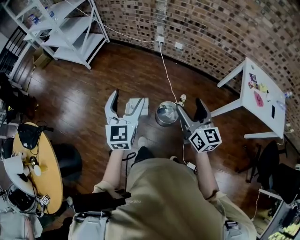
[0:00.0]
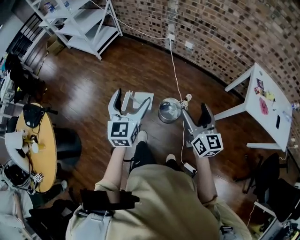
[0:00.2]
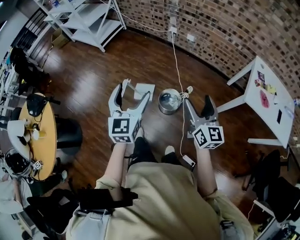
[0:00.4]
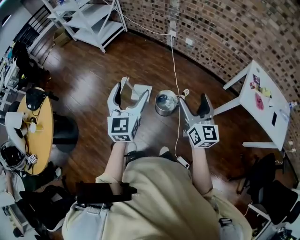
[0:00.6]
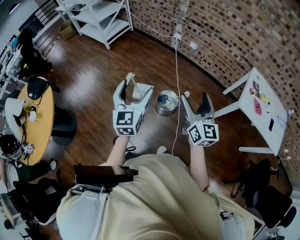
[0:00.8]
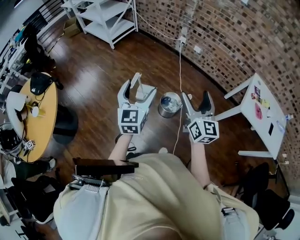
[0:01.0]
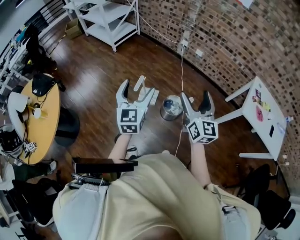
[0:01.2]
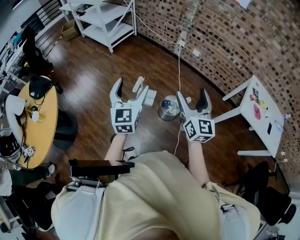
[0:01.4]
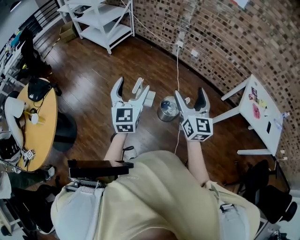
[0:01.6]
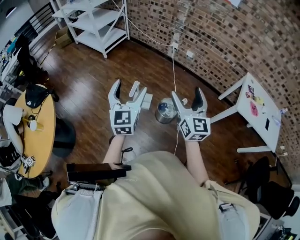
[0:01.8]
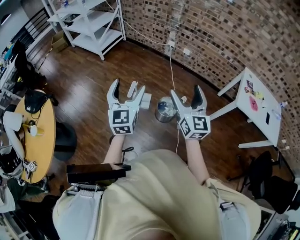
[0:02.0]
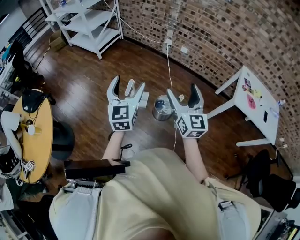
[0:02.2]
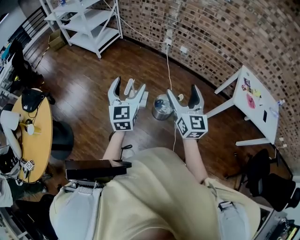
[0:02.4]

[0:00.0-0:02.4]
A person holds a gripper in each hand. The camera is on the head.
0:00.0 to 0:01.2: The right gripper goes roughly 15 cm backward and upward, while the left gripper moves backward, roughly 15 cm.
0:01.2 to 0:02.4: The grippers make only small movements.

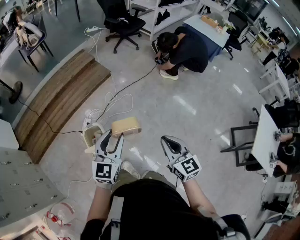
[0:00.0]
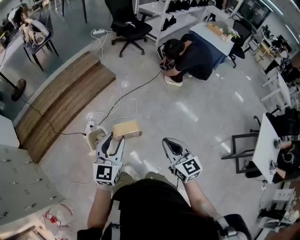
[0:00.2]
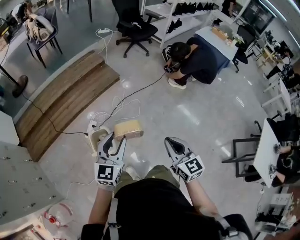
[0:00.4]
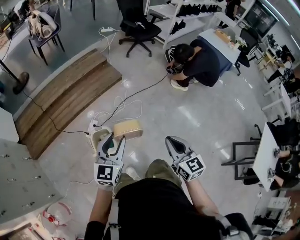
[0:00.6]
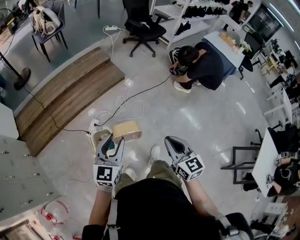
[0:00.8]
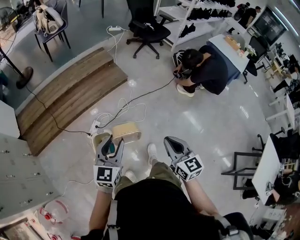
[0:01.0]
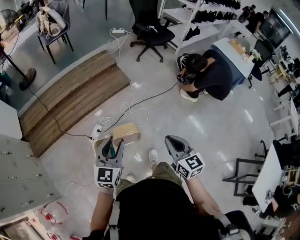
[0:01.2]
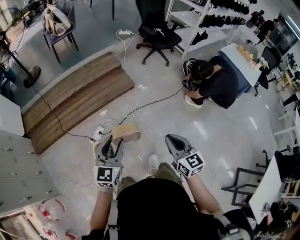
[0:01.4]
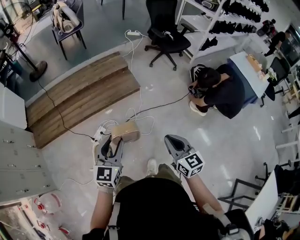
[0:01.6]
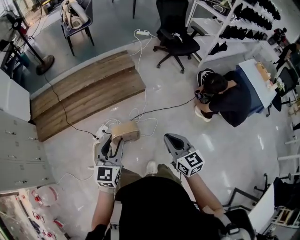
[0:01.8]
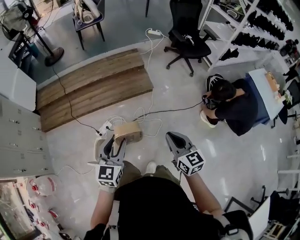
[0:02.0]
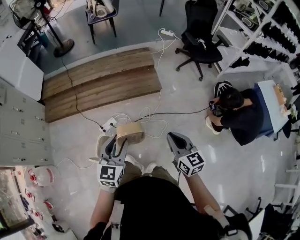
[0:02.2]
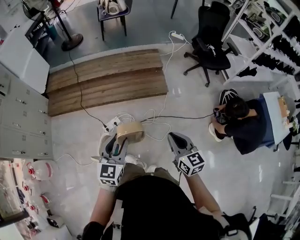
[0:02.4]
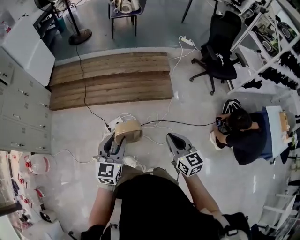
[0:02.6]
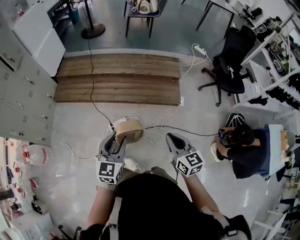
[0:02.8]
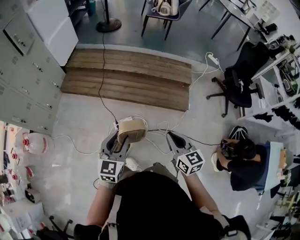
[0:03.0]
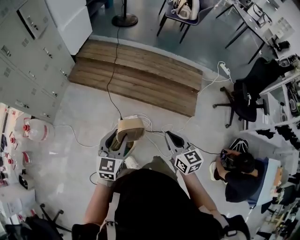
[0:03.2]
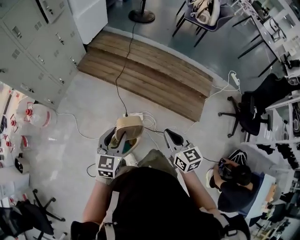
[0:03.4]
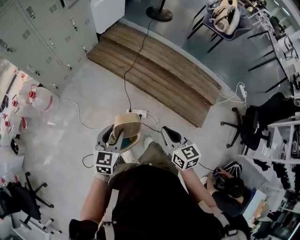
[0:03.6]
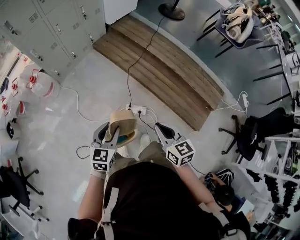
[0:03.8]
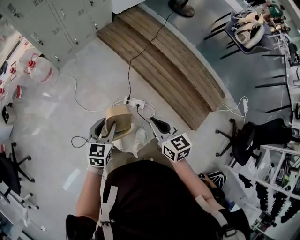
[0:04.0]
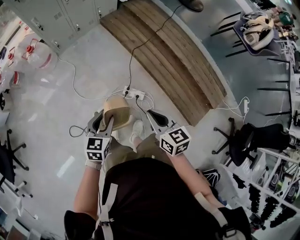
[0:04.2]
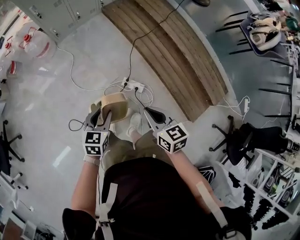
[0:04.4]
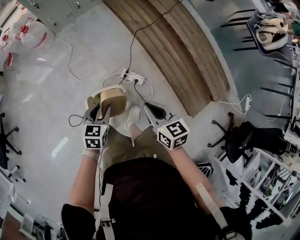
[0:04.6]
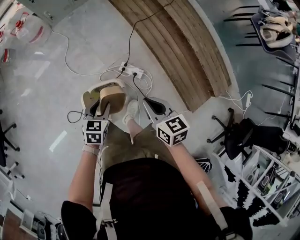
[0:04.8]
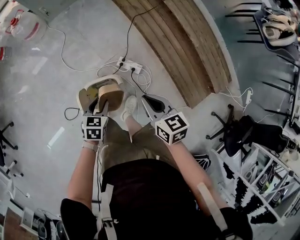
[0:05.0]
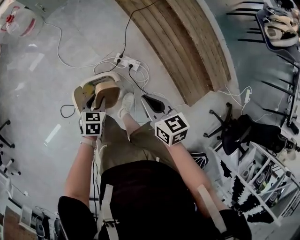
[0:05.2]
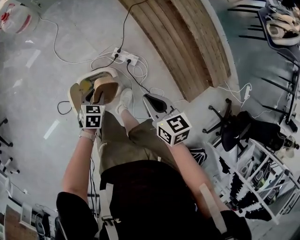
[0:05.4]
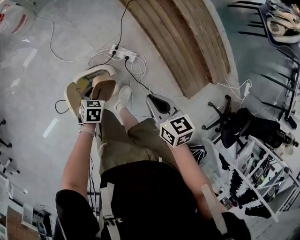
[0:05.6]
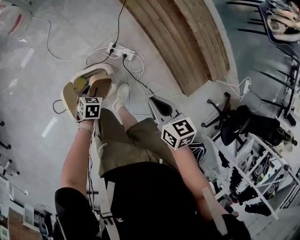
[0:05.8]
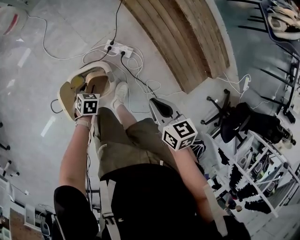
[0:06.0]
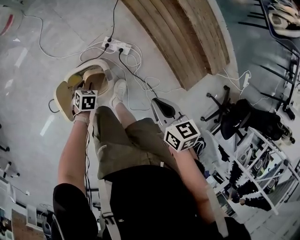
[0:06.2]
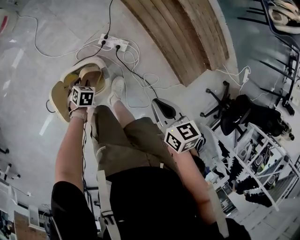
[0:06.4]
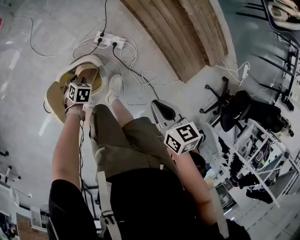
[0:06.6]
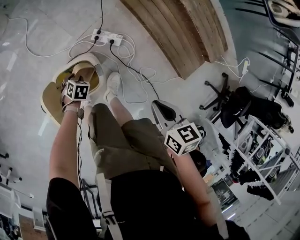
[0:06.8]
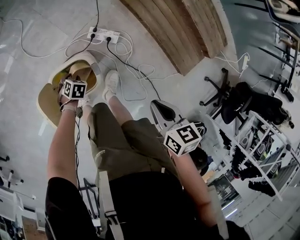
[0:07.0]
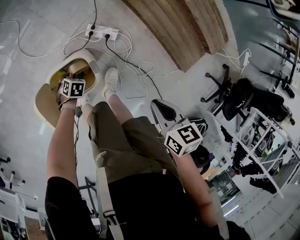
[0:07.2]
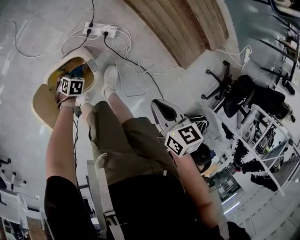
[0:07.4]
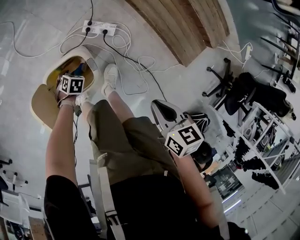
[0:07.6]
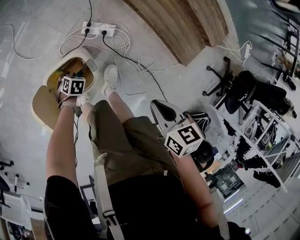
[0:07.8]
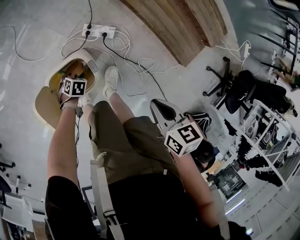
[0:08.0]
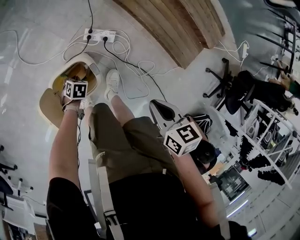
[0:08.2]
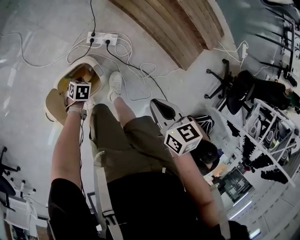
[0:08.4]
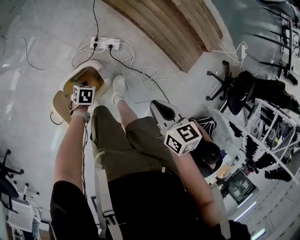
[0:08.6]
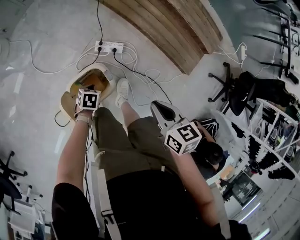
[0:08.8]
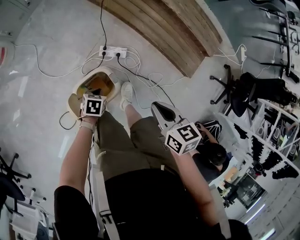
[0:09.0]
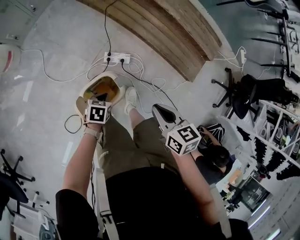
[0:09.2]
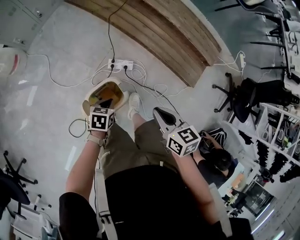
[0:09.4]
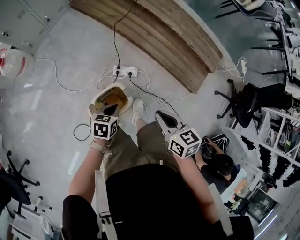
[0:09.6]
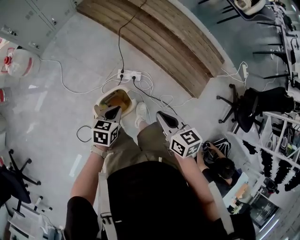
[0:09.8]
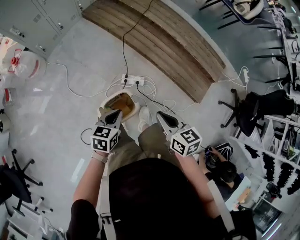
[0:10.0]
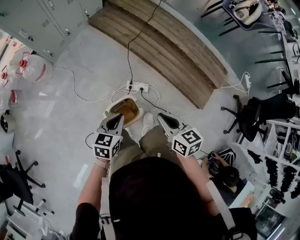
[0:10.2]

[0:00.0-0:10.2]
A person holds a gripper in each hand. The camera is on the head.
0:00.0 to 0:01.4: Both grippers move forward, roughly 25 cm.
0:01.4 to 0:03.0: The left gripper ends up about 20 cm from where it was, and swivels some 40 degrees; the right gripper changes place by approximately 35 cm, and rotates roughly 40 degrees.
0:03.0 to 0:04.4: The right gripper ends up some 30 cm from where it was, and turns by about 50 degrees, while the left gripper travels downward by approximately 20 cm, and rotates some 50 degrees.
0:04.4 to 0:05.8: The right gripper heads downward and to the right, covering approximately 15 cm; the left gripper travels downward by about 30 cm, and tilts its fingers some 30 degrees downward.
0:05.8 to 0:07.2: The left gripper shifts approximately 20 cm downward, and changes its angle by about 20 degrees, while the right gripper ends up approximately 10 cm from where it was.
0:07.2 to 0:08.8: The left gripper shifts approximately 10 cm upward, and closes; the right gripper ends up roughly 10 cm from where it was.
0:08.8 to 0:10.2: The left gripper moves upward, about 40 cm, and tips its fingers upward by about 40 degrees, while the right gripper shifts roughly 20 cm upward and to the left.

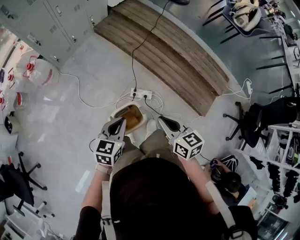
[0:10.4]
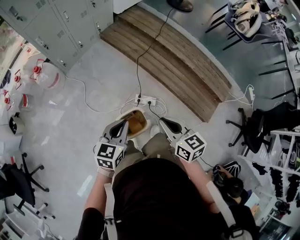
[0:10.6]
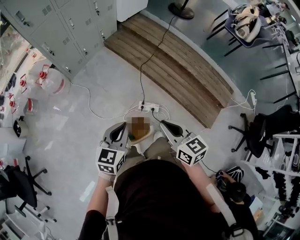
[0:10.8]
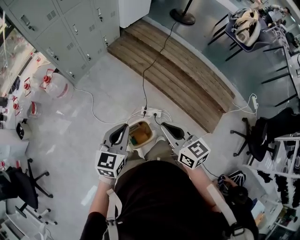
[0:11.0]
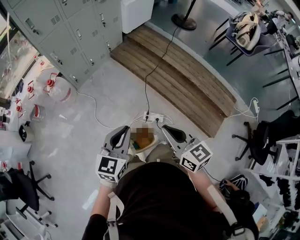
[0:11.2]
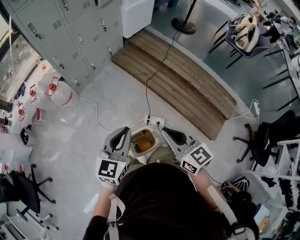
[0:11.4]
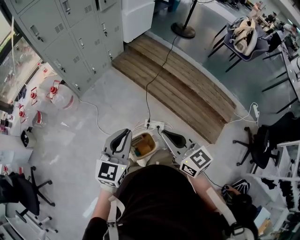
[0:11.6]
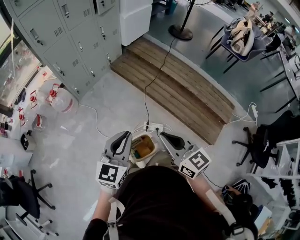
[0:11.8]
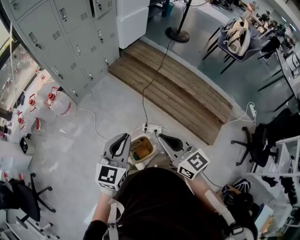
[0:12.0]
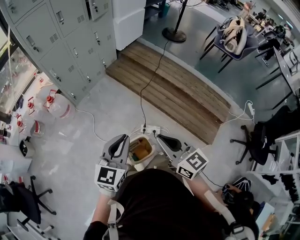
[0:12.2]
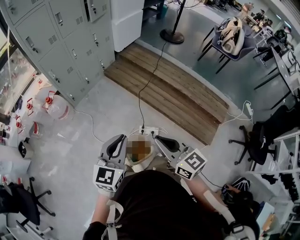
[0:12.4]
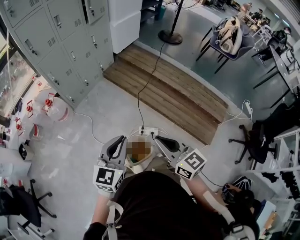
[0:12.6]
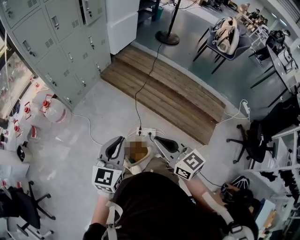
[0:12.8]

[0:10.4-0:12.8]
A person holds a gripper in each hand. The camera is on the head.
0:10.4 to 0:11.6: Both grippers move upward, approximately 20 cm. The right gripper changes its angle by some 20 degrees. Meanwhile the left gripper changes its angle by some 20 degrees.
0:11.6 to 0:12.8: There are only small adjustments of the grippers.

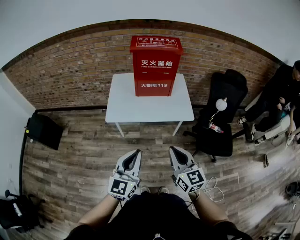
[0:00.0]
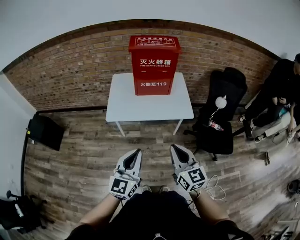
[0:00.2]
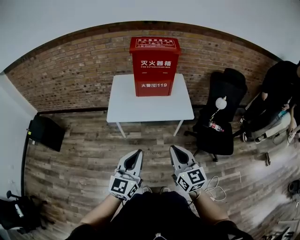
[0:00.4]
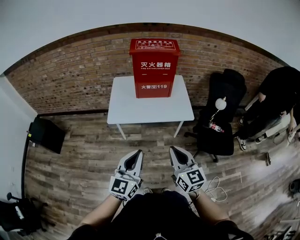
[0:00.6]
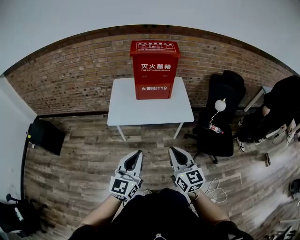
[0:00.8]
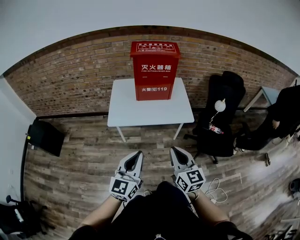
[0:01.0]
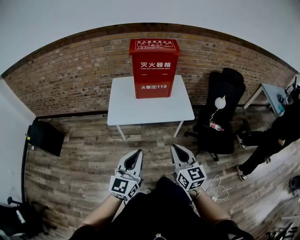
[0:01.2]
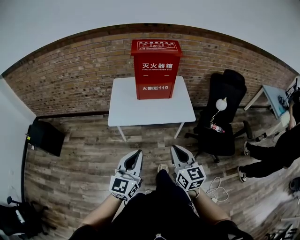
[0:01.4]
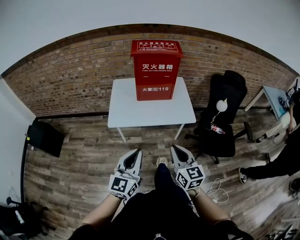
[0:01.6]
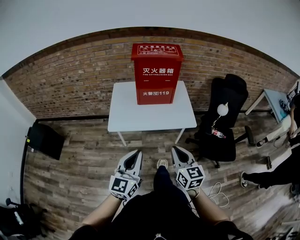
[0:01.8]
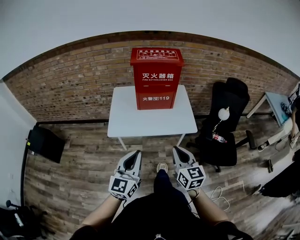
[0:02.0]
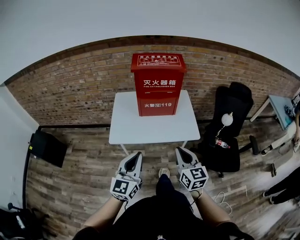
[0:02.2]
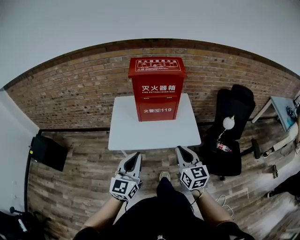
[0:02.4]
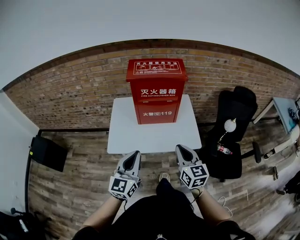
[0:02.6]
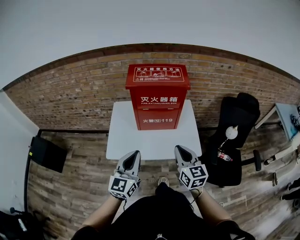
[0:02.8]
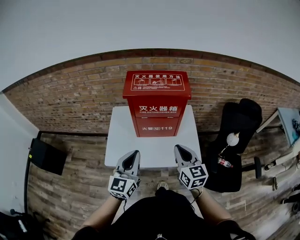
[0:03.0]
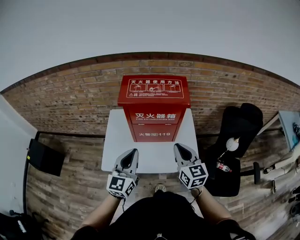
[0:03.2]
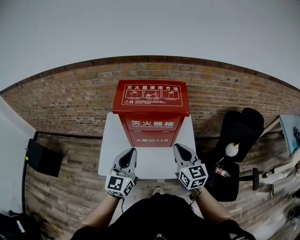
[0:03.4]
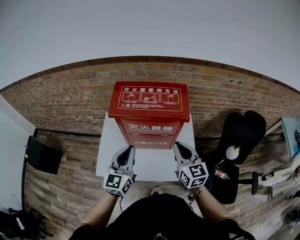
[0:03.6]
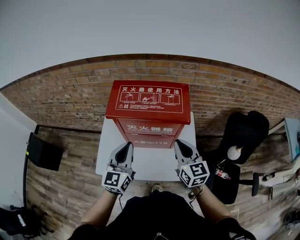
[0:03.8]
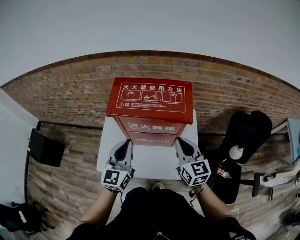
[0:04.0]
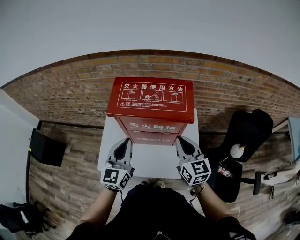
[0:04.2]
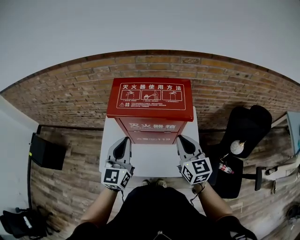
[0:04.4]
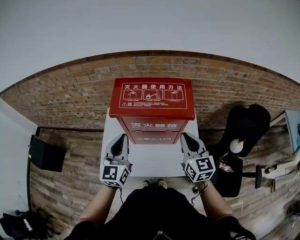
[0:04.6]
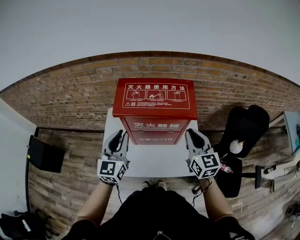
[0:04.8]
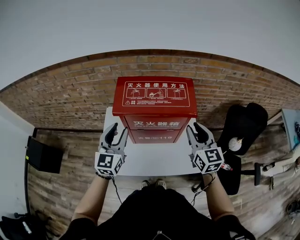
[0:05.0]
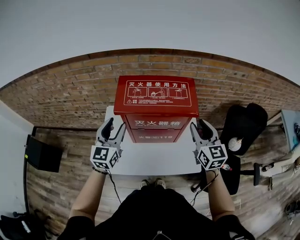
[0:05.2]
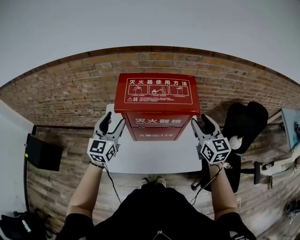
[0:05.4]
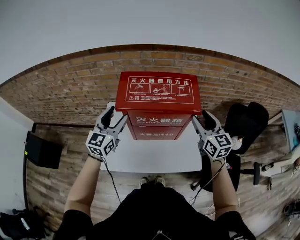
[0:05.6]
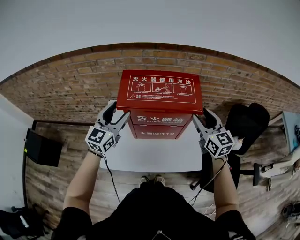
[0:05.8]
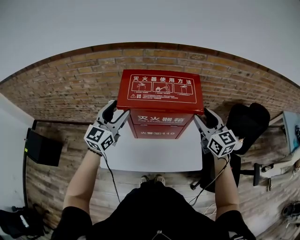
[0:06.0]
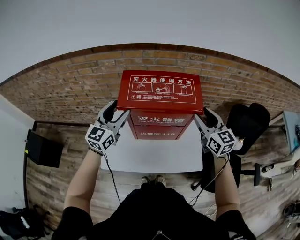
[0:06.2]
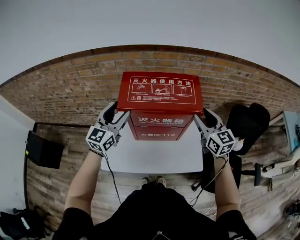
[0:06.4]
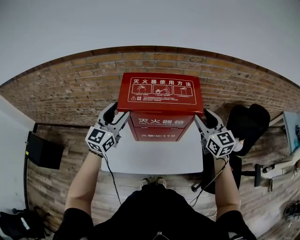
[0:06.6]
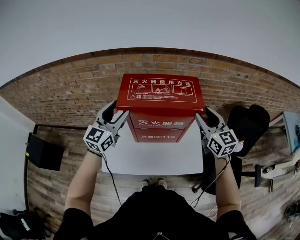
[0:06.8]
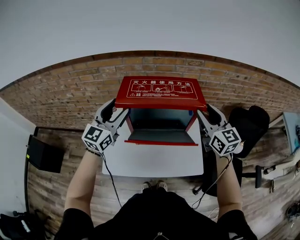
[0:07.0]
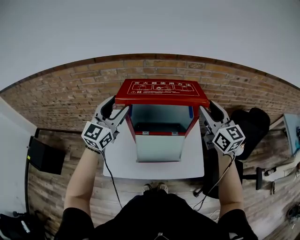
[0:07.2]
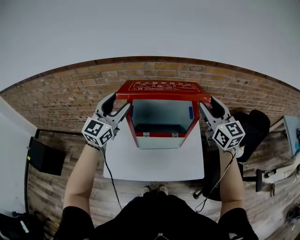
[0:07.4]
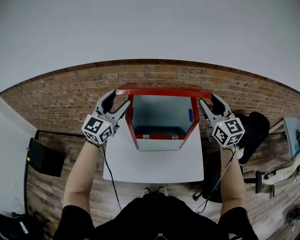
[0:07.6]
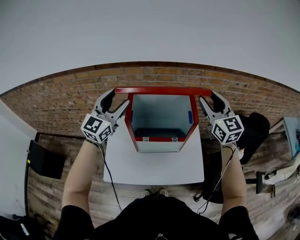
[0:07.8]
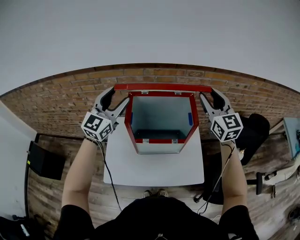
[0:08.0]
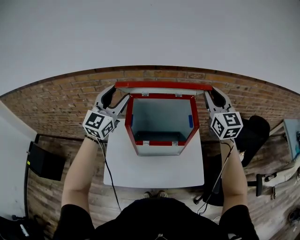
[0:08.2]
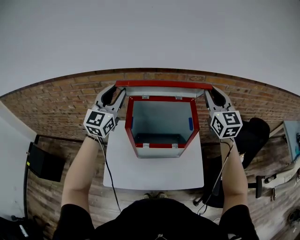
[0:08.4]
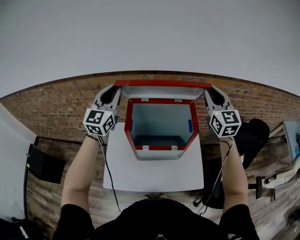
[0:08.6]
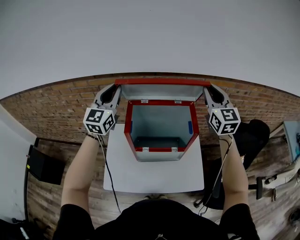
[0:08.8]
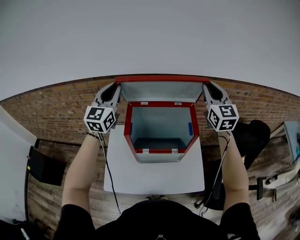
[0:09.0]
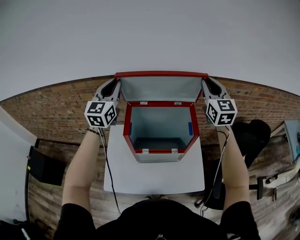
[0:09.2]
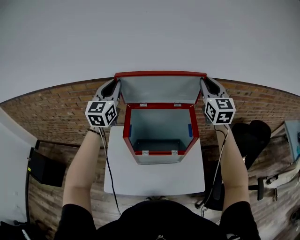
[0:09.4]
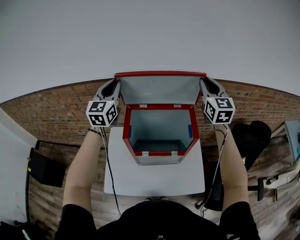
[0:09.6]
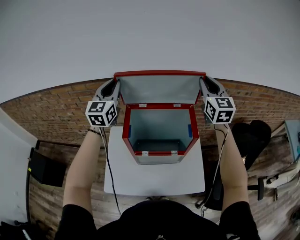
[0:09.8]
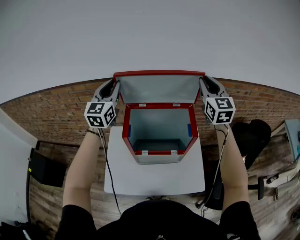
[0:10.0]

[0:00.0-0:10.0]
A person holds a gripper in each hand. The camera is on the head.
0:00.0 to 0:01.4: The grippers move only a little.
0:01.4 to 0:02.8: Both grippers move forward, some 30 cm.
0:02.8 to 0:04.2: Both grippers travel together forward, approximately 25 cm.
0:04.2 to 0:05.8: The left gripper moves forward and to the left, some 10 cm, and opens its fingers. Meanwhile the right gripper moves forward, some 5 cm, and opens.
0:05.8 to 0:07.2: Both grippers travel together upward, roughly 10 cm.
0:07.2 to 0:08.6: Both grippers move forward and upward, roughly 15 cm. The right gripper swivels about 20 degrees, and closes its fingers, while the left gripper closes its fingers.
0:08.6 to 0:10.0: The grippers both shift forward by roughly 5 cm.
